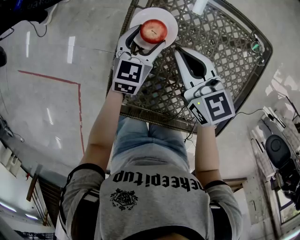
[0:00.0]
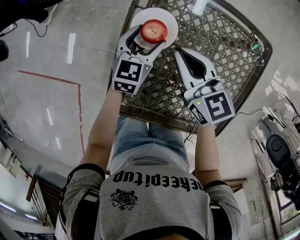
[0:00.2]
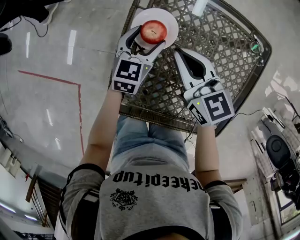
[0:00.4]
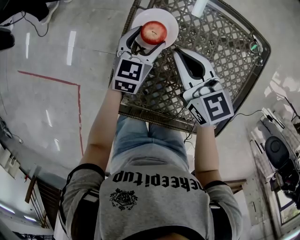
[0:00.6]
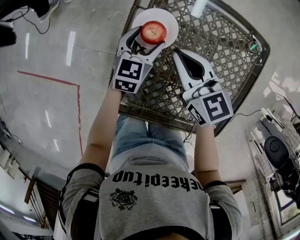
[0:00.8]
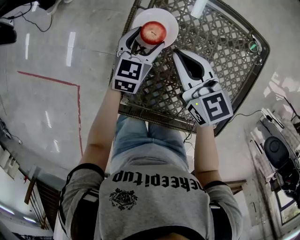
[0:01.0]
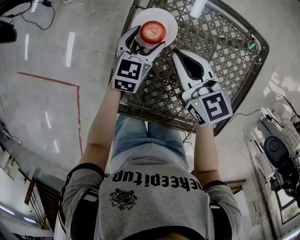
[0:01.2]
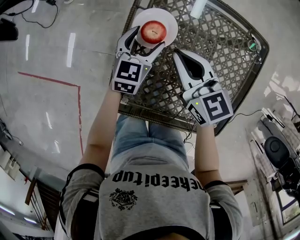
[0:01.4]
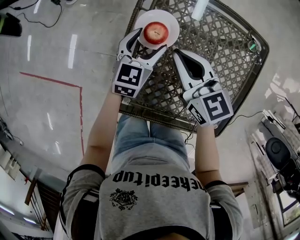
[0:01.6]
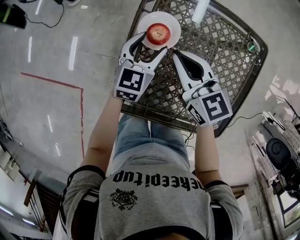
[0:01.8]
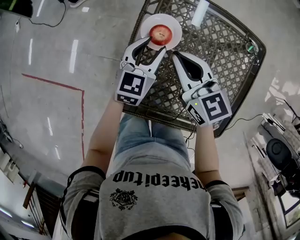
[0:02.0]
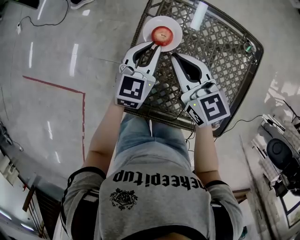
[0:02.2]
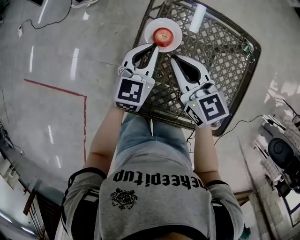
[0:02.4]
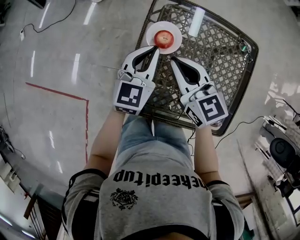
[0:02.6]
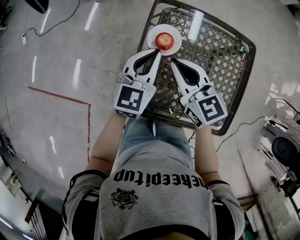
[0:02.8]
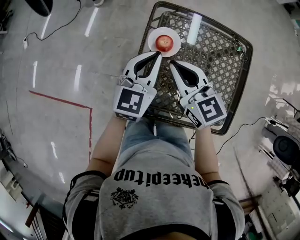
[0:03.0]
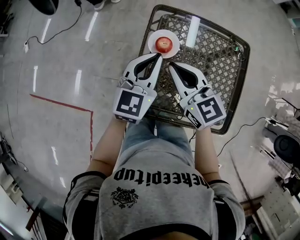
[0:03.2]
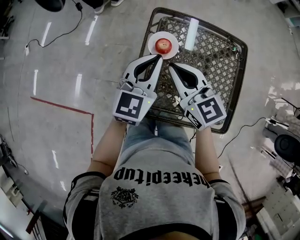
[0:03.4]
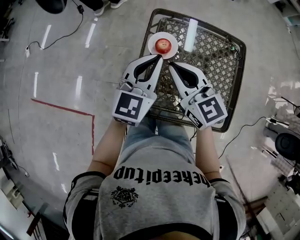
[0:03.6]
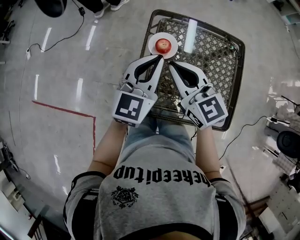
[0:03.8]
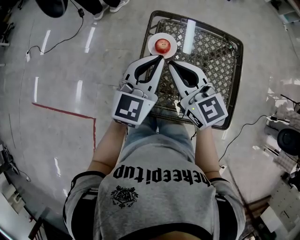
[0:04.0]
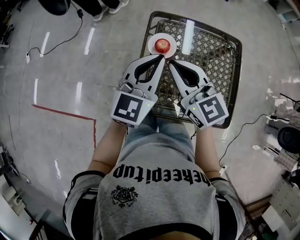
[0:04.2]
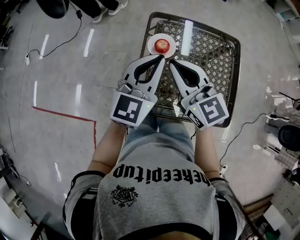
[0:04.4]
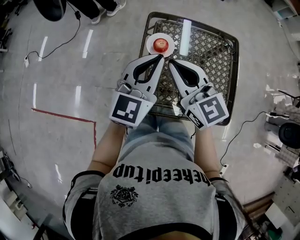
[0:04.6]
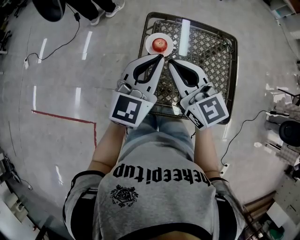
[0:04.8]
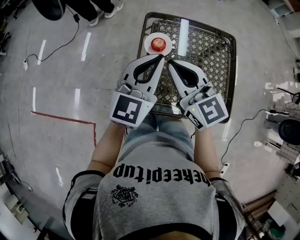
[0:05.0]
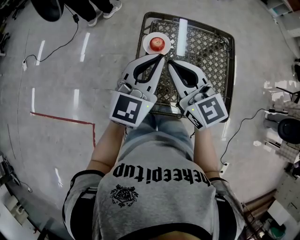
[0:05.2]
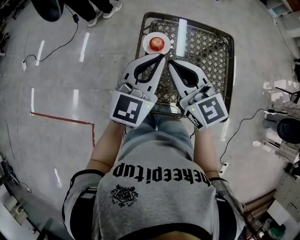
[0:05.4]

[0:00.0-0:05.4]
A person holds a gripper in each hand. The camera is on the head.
0:00.0 to 0:01.4: The grippers make only small movements.
0:01.4 to 0:02.8: The left gripper moves upward, roughly 15 cm, and closes. Meanwhile the right gripper goes about 10 cm upward and to the left.
0:02.8 to 0:04.0: The right gripper shifts about 10 cm upward; the left gripper is displaced upward and backward by some 10 cm.
0:04.0 to 0:05.4: The left gripper moves roughly 5 cm. The right gripper changes place by about 5 cm.

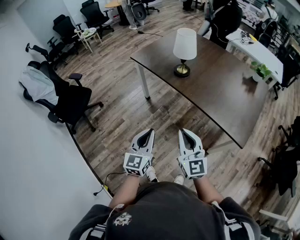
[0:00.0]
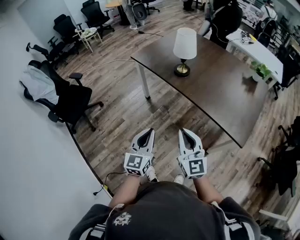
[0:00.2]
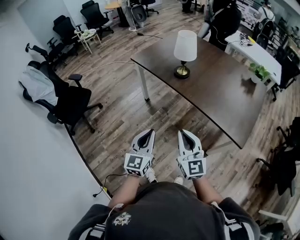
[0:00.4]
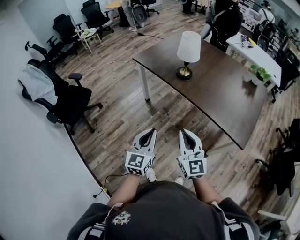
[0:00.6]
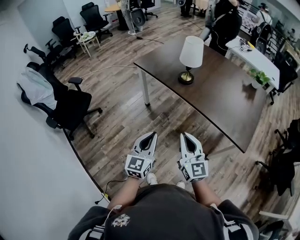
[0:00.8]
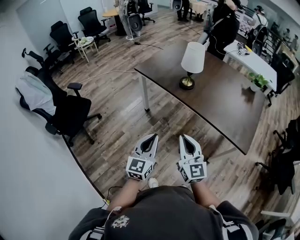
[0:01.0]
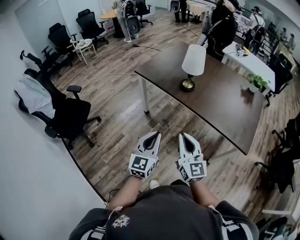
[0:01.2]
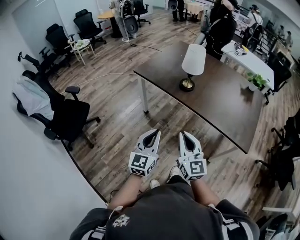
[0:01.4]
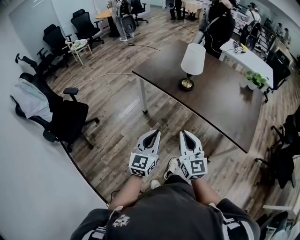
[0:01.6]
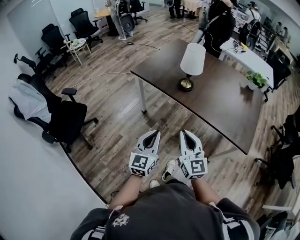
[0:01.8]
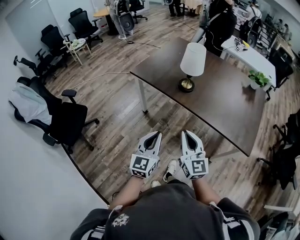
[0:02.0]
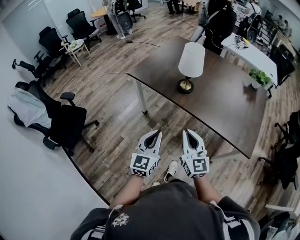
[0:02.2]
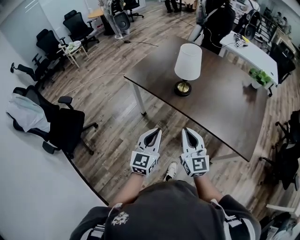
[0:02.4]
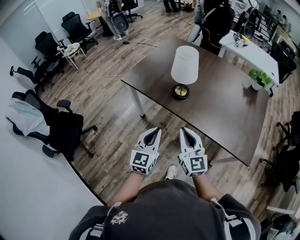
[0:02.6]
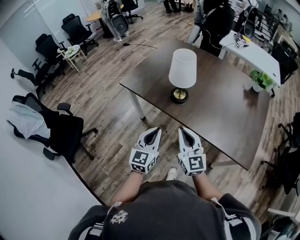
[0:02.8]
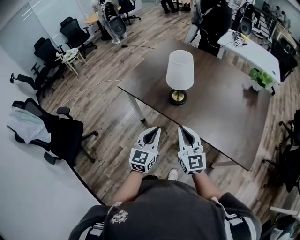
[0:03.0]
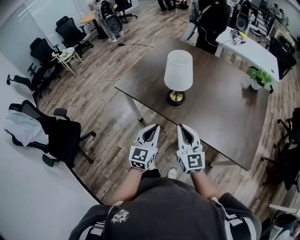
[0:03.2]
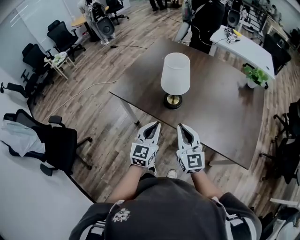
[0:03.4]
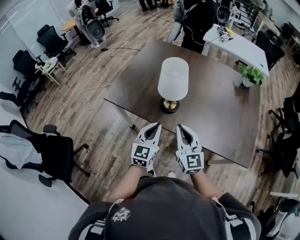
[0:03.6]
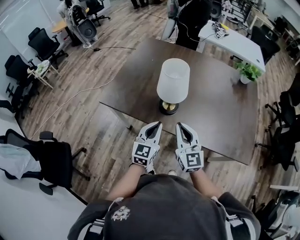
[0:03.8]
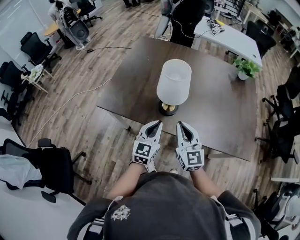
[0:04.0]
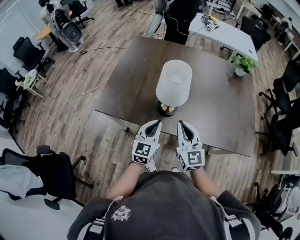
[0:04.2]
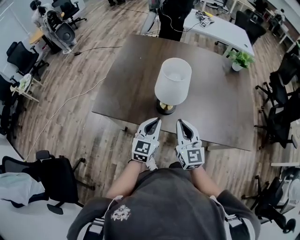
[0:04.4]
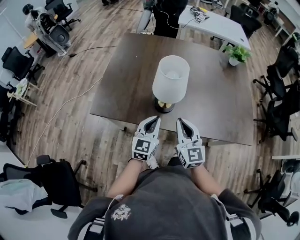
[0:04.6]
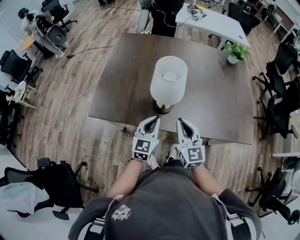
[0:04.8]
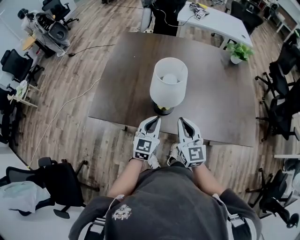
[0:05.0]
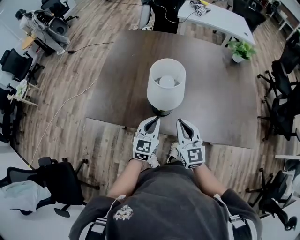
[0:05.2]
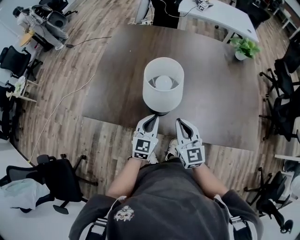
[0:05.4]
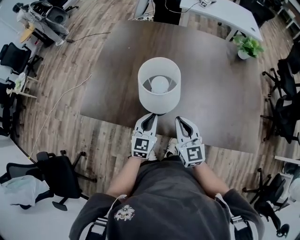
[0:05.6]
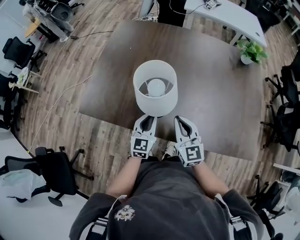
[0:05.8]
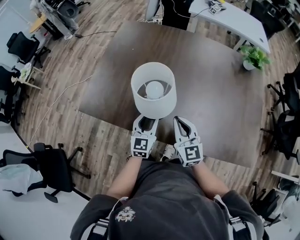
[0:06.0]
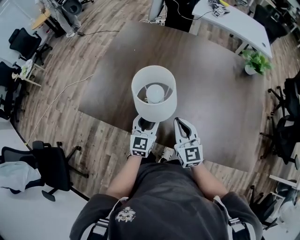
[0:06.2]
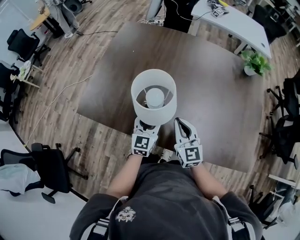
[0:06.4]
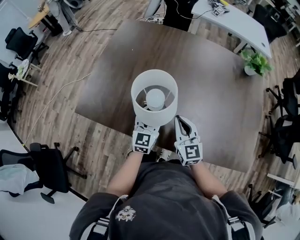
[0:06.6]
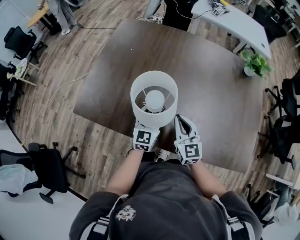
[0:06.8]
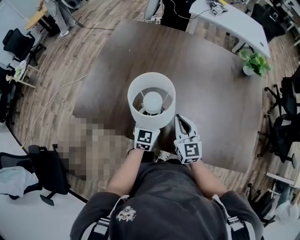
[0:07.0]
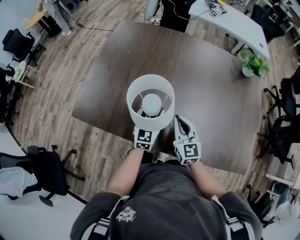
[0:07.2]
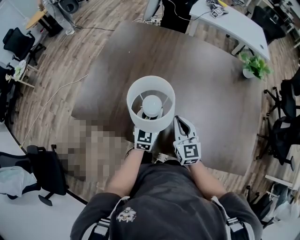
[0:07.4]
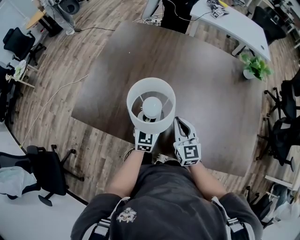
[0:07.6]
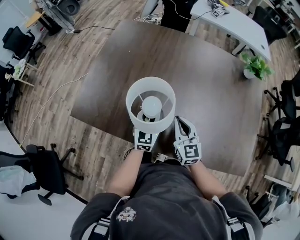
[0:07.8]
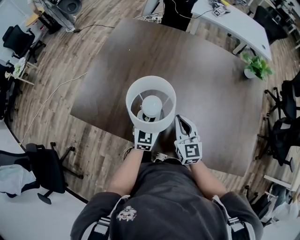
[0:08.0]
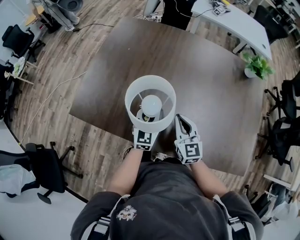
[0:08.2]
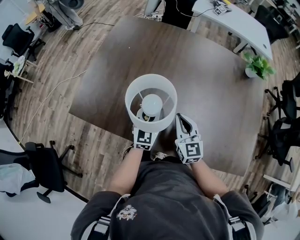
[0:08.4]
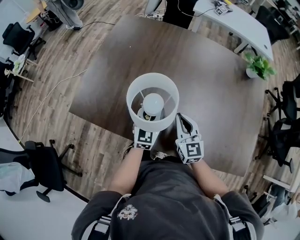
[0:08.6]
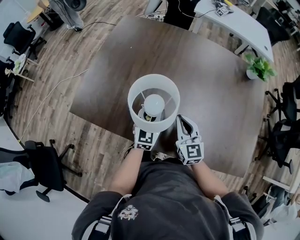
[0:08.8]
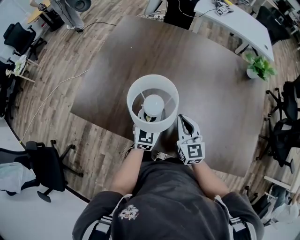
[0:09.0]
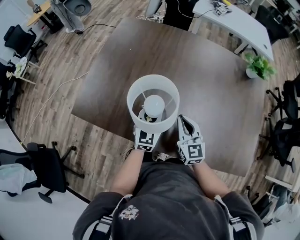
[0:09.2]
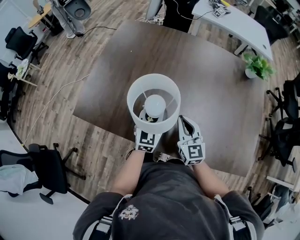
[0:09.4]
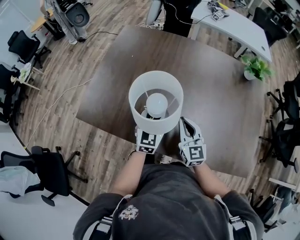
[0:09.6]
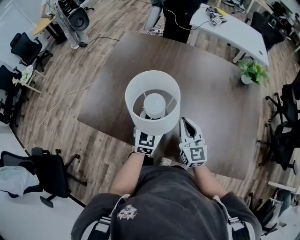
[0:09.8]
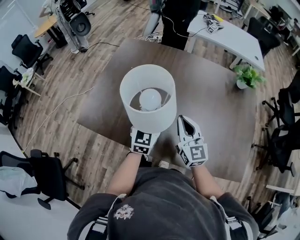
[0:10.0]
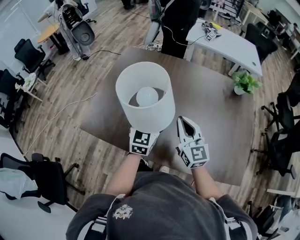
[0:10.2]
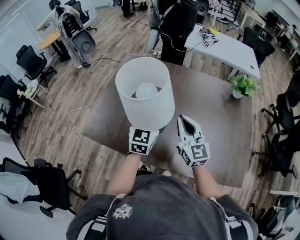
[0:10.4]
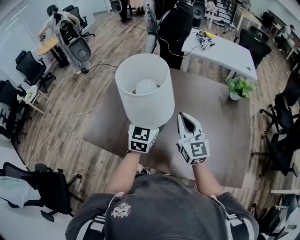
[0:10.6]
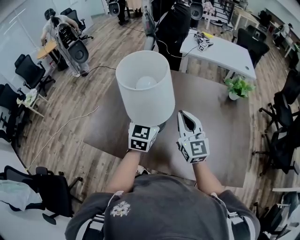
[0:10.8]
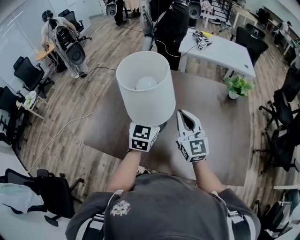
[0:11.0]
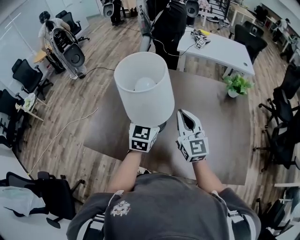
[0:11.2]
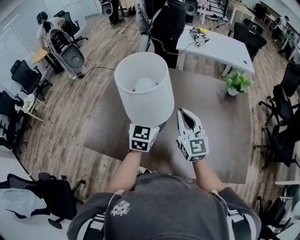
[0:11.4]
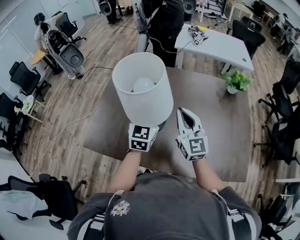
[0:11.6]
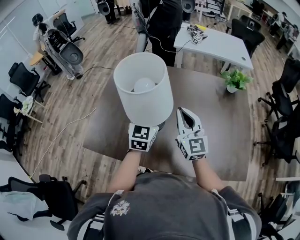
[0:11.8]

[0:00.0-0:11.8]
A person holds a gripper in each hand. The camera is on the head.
0:00.0 to 0:01.4: The right gripper moves to the left, some 10 cm. The left gripper goes roughly 10 cm to the left and forward.
0:01.4 to 0:03.0: The two grippers go roughly 25 cm forward.
0:03.0 to 0:04.4: The grippers both shift forward by some 20 cm. The left gripper rotates some 20 degrees. Meanwhile the right gripper changes its angle by about 20 degrees.
0:04.4 to 0:06.0: Both grippers move forward, downward and to the right, some 15 cm. The left gripper opens up.
0:06.0 to 0:07.4: The two grippers go about 10 cm forward.
0:07.4 to 0:08.8: The left gripper closes up.
0:08.8 to 0:10.4: Both grippers travel together upward, roughly 20 cm.
0:10.4 to 0:11.8: The left gripper changes place by about 5 cm, while the right gripper ends up roughly 5 cm from where it was.

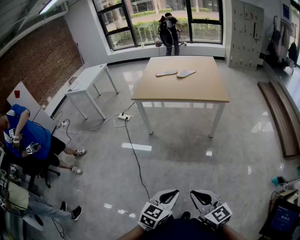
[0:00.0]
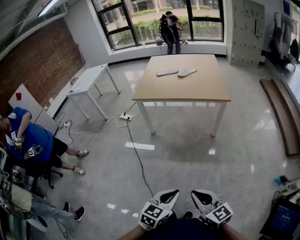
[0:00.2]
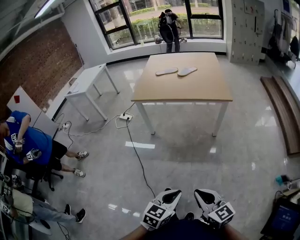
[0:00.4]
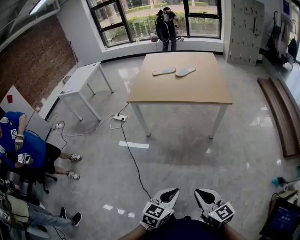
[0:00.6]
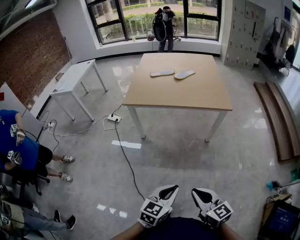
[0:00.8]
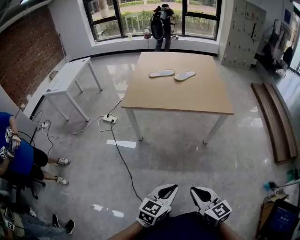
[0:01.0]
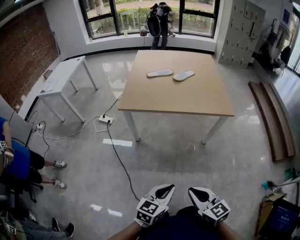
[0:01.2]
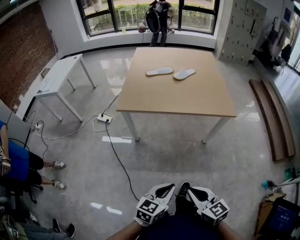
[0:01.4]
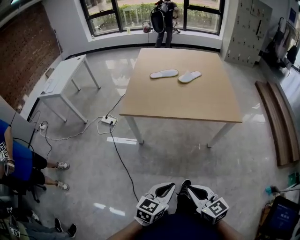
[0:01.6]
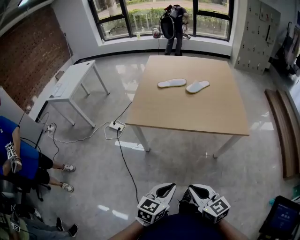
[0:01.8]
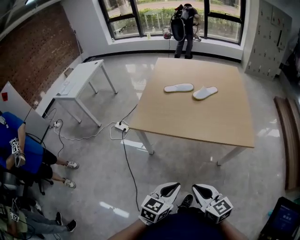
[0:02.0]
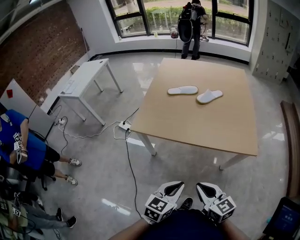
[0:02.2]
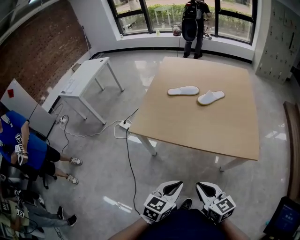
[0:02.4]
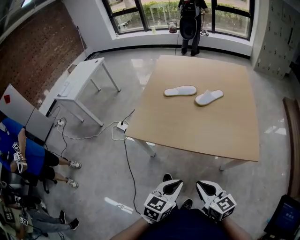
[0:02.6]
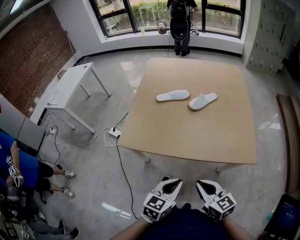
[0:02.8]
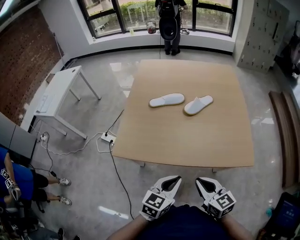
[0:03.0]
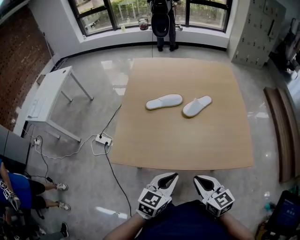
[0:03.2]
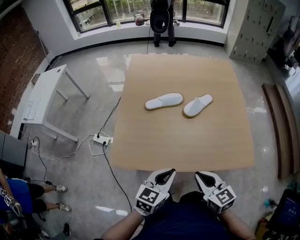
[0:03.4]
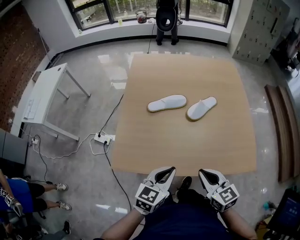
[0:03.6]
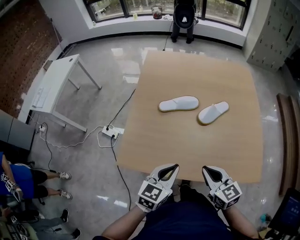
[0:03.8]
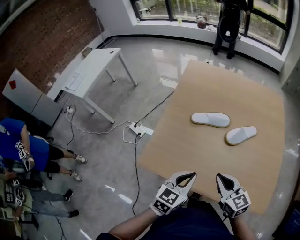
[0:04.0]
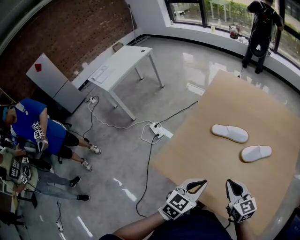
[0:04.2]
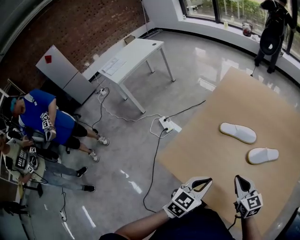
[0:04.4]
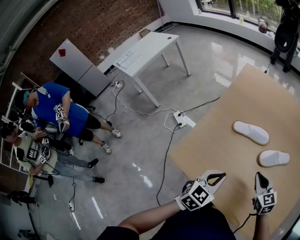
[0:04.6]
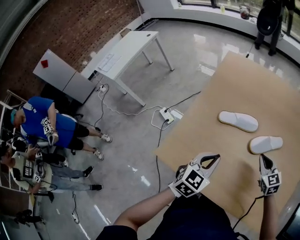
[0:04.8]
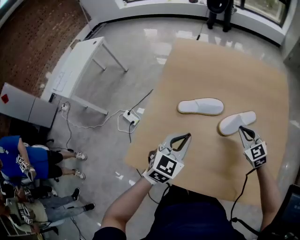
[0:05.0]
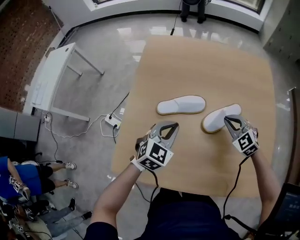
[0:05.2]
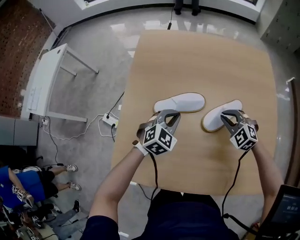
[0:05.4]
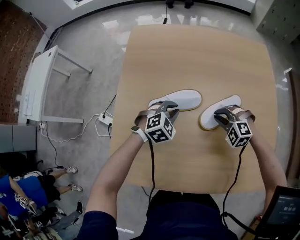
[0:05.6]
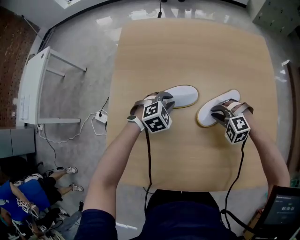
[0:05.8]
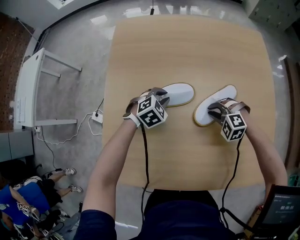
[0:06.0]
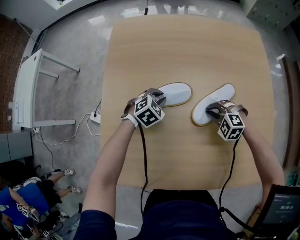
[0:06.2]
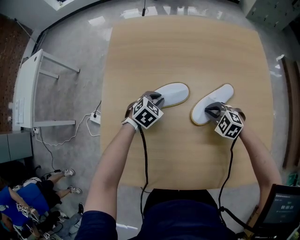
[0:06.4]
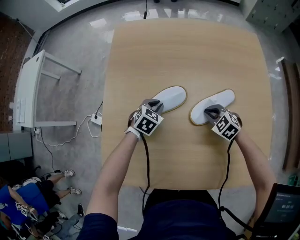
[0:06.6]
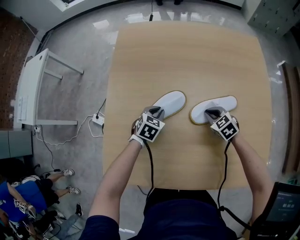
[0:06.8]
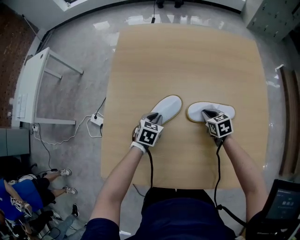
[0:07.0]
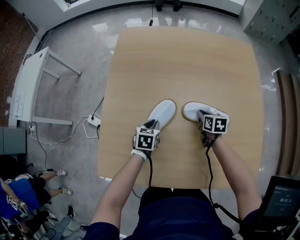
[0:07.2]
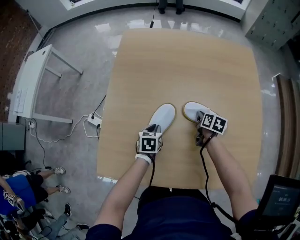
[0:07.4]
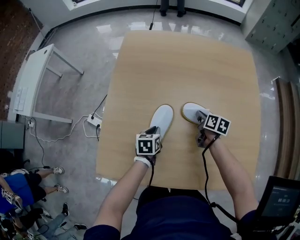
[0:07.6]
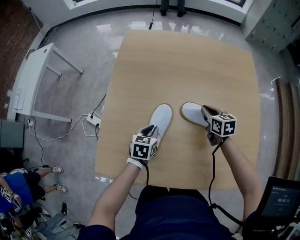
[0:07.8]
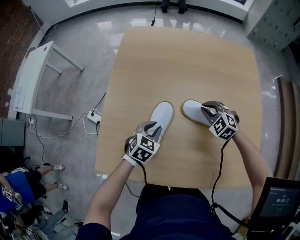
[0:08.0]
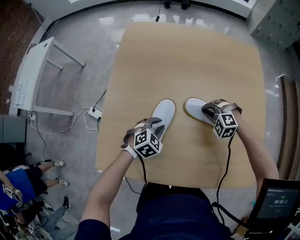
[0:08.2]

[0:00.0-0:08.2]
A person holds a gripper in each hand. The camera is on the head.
0:00.0 to 0:01.6: The two grippers go about 35 cm forward.
0:01.6 to 0:03.2: Both grippers travel together forward, approximately 40 cm.
0:03.2 to 0:05.0: Both grippers travel together forward, some 35 cm. The right gripper changes its angle by some 30 degrees; the left gripper rotates roughly 30 degrees.
0:05.0 to 0:06.6: The right gripper travels downward by approximately 10 cm, and swivels about 30 degrees. The left gripper goes some 25 cm downward and forward, and rotates approximately 30 degrees.
0:06.6 to 0:08.2: The right gripper travels upward and back again, about 5 cm each way, and twists roughly 40 degrees counterclockwise, seen from behind, while the left gripper travels backward by roughly 10 cm.
